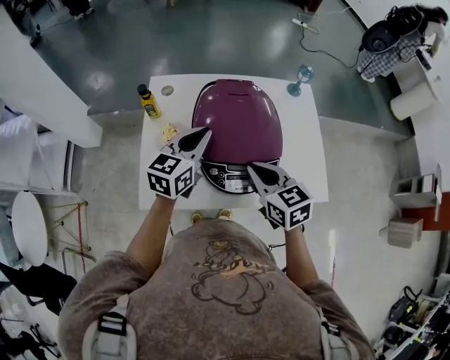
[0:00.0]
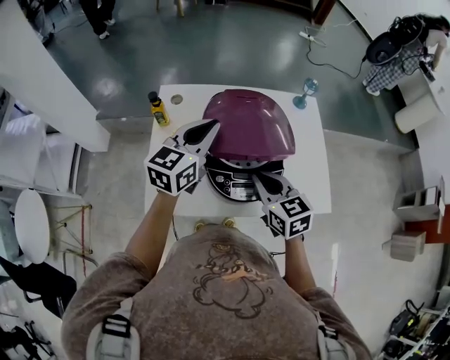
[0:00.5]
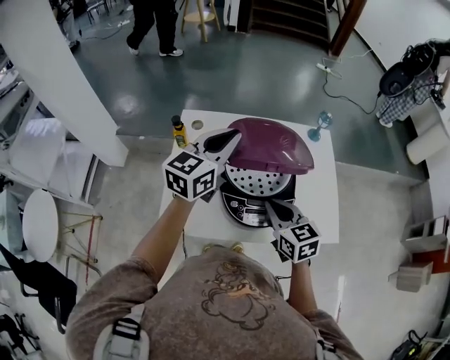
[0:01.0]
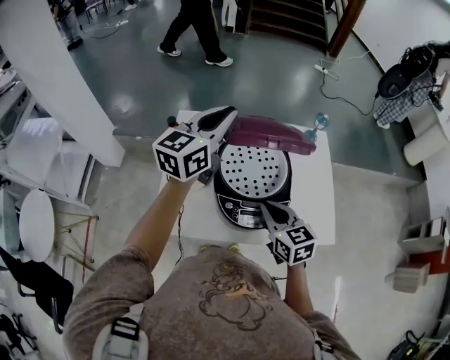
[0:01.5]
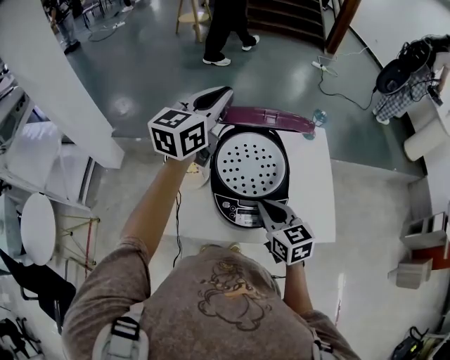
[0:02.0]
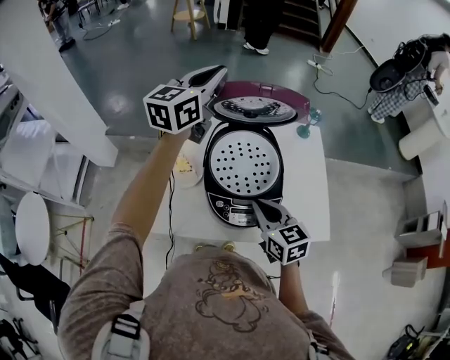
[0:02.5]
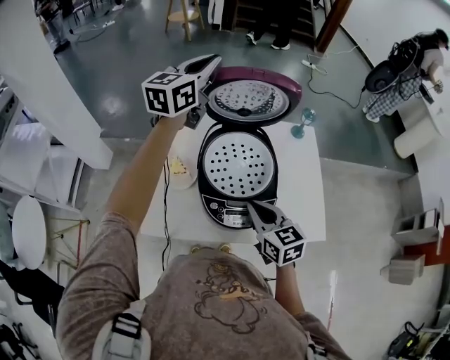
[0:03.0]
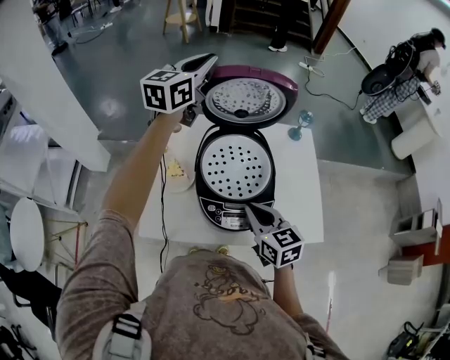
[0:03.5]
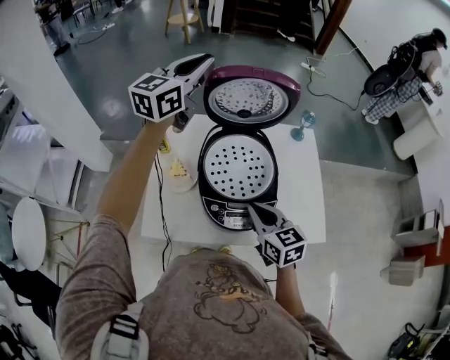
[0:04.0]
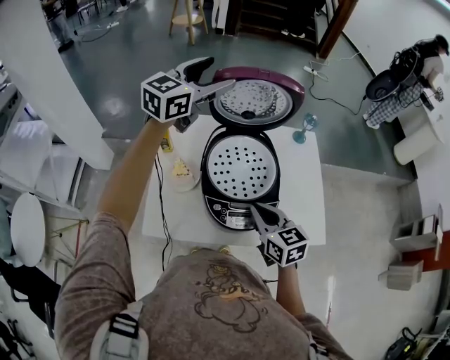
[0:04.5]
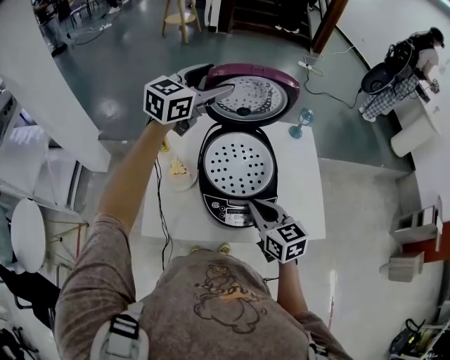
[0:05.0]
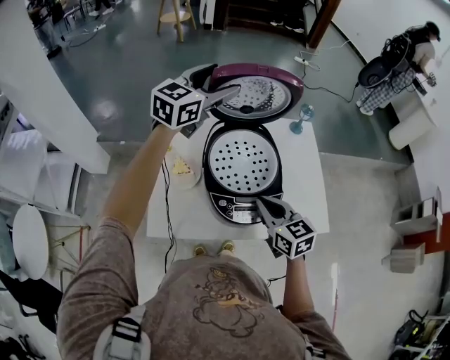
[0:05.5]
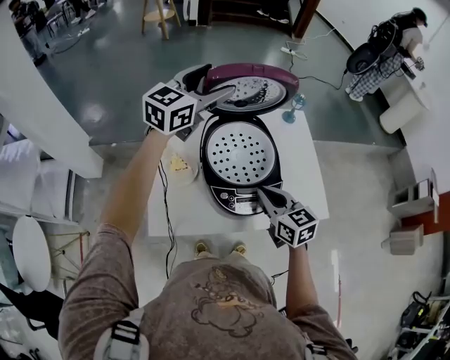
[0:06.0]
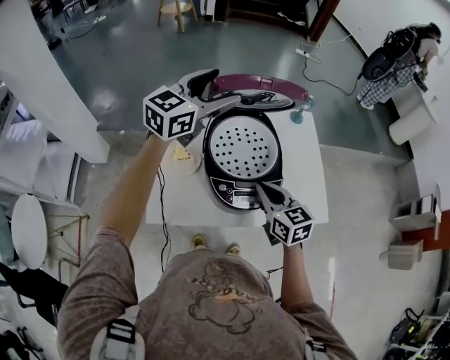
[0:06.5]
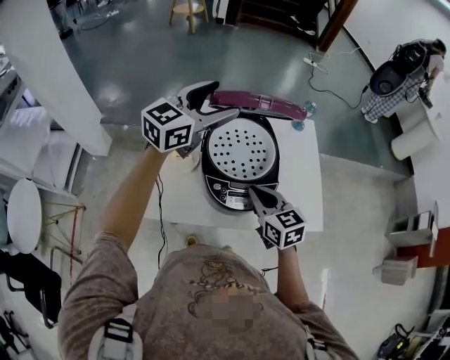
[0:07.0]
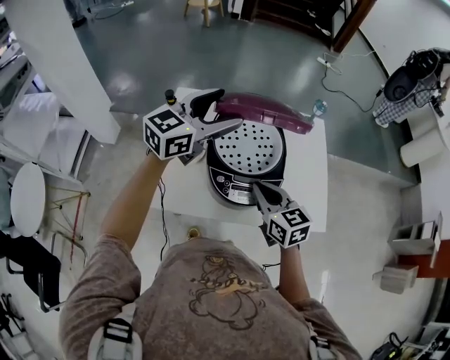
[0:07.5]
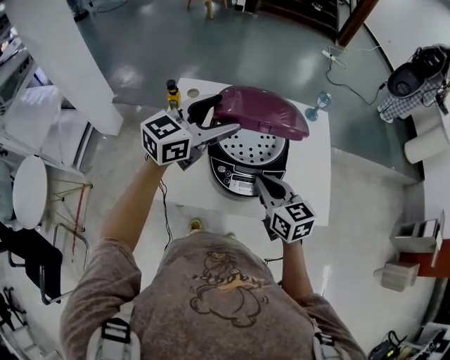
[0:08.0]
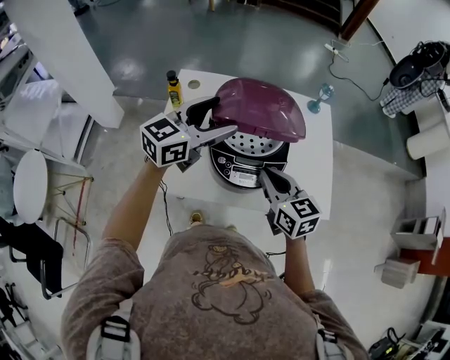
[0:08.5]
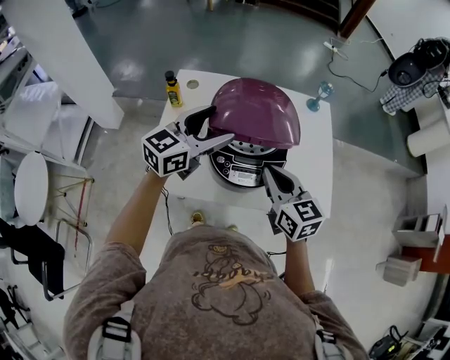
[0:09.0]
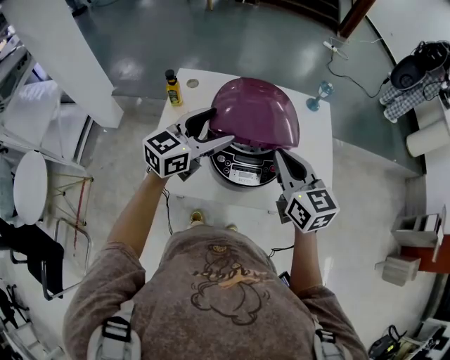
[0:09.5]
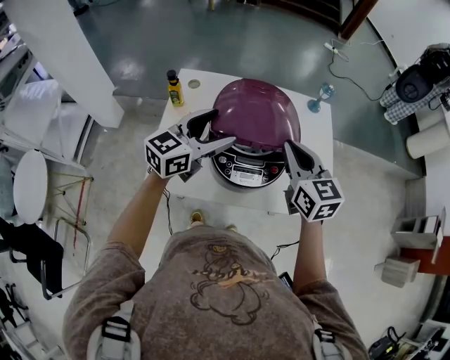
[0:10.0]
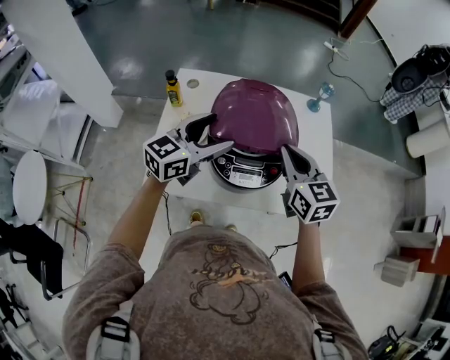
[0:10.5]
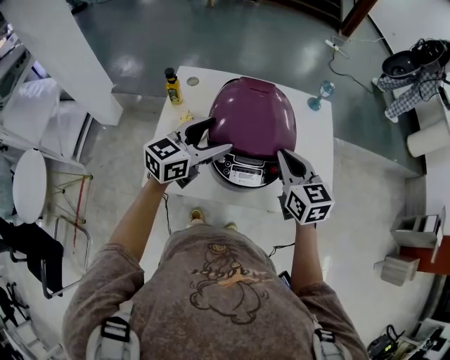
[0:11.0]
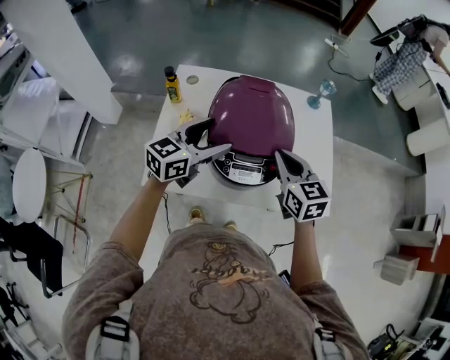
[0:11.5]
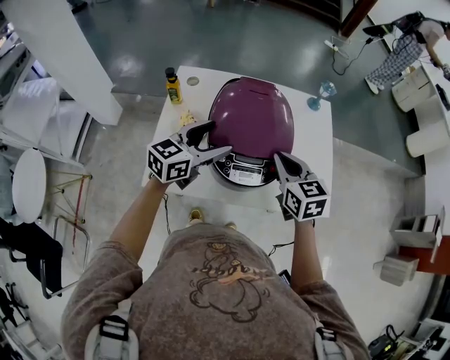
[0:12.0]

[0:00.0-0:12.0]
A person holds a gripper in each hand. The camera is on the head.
0:00.0 to 0:02.0: The left gripper travels upward and forward by roughly 20 cm.
0:02.0 to 0:04.0: The left gripper moves forward, approximately 5 cm.
0:04.0 to 0:06.0: The left gripper heads downward, covering about 5 cm, and opens its fingers.
0:06.0 to 0:08.0: The left gripper shifts about 15 cm backward and downward.
0:08.0 to 0:10.0: The left gripper heads downward, covering roughly 5 cm; the right gripper heads upward and forward, covering approximately 10 cm.
0:10.0 to 0:12.0: The left gripper shifts by some 5 cm; the right gripper moves downward, roughly 5 cm.

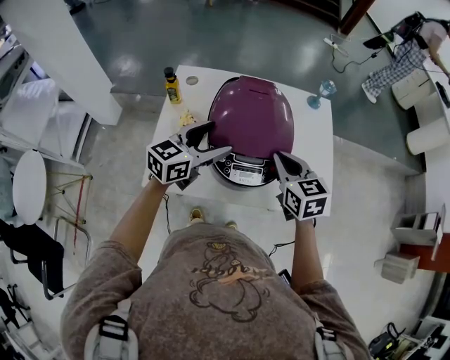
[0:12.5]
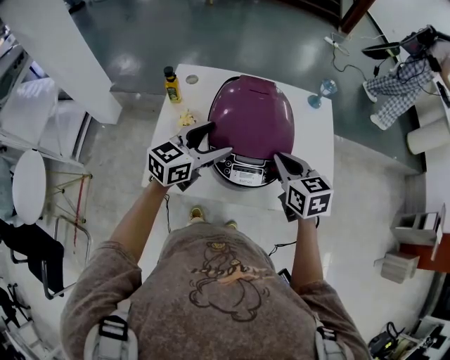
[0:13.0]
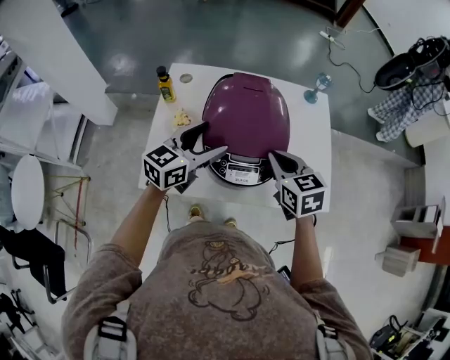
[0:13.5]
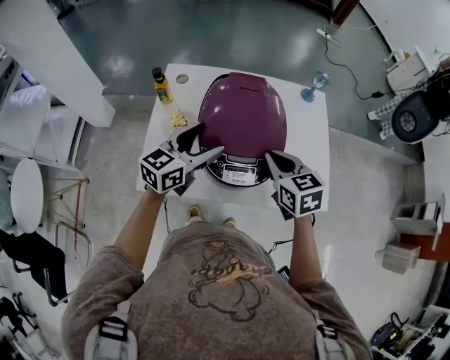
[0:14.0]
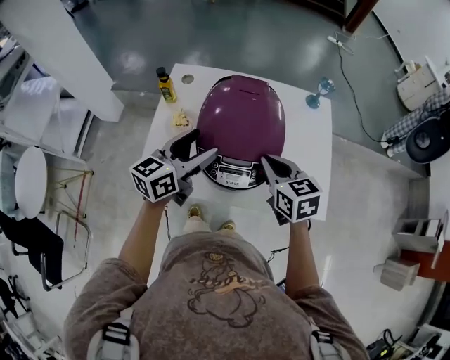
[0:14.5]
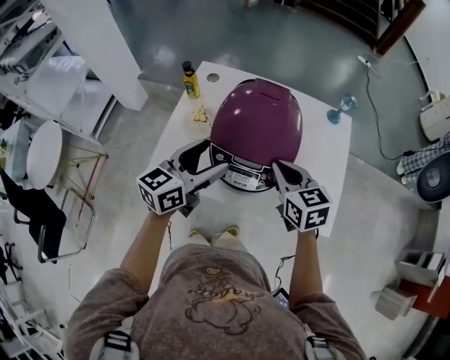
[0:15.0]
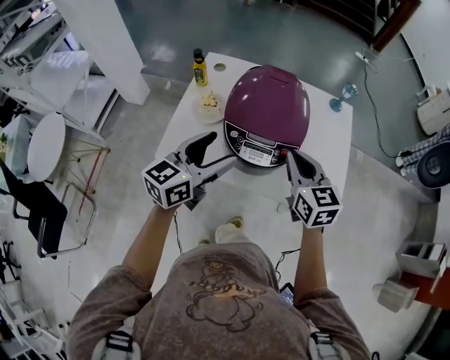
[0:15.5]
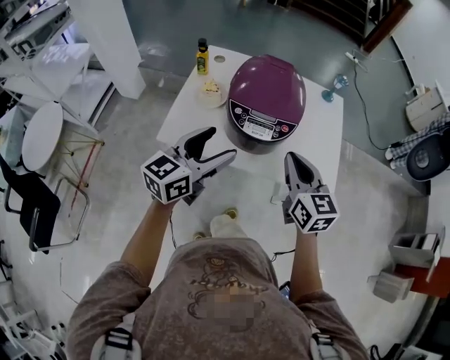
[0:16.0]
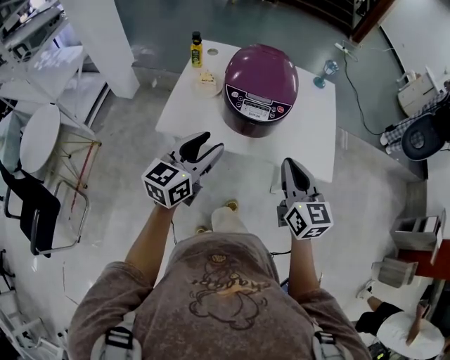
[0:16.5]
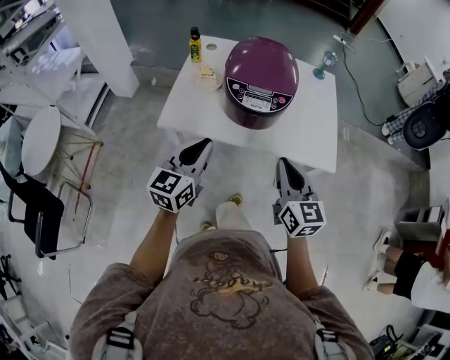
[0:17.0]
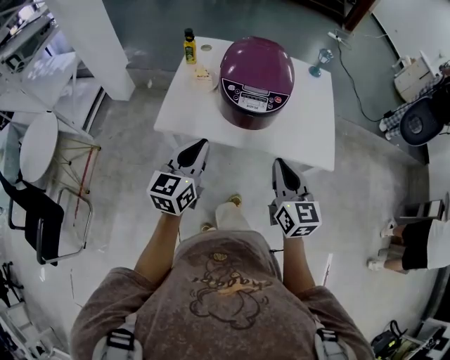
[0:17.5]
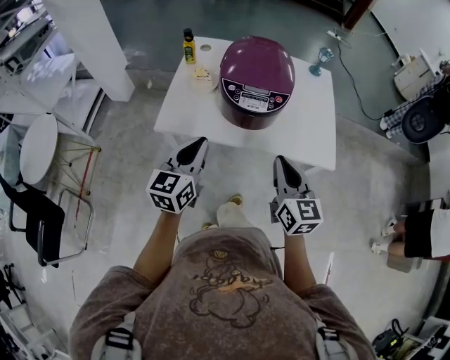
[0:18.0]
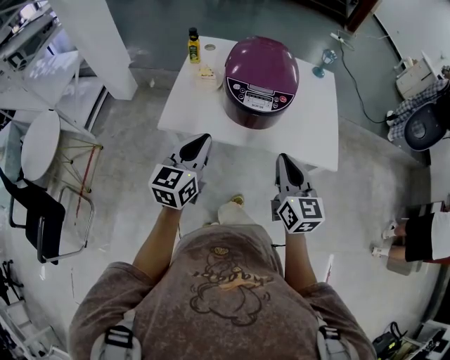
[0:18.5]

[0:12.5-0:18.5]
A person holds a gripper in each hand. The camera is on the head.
0:12.5 to 0:14.5: The grippers stay close to where they were, moving slightly.
0:14.5 to 0:16.5: Both grippers move backward, approximately 25 cm. The left gripper closes up, while the right gripper swivels roughly 20 degrees.
0:16.5 to 0:18.5: The left gripper closes its fingers.

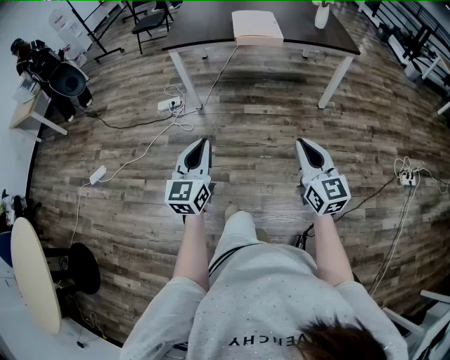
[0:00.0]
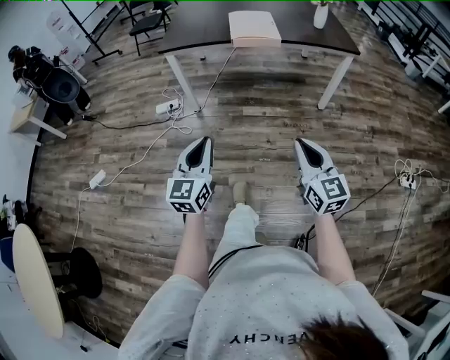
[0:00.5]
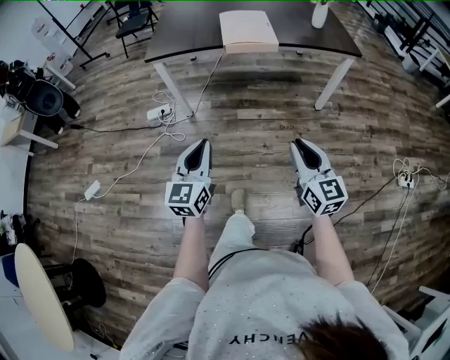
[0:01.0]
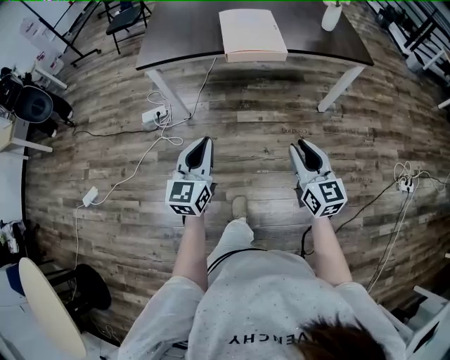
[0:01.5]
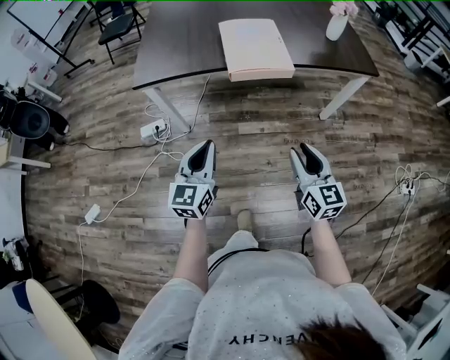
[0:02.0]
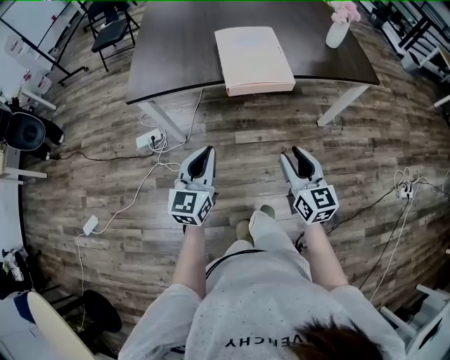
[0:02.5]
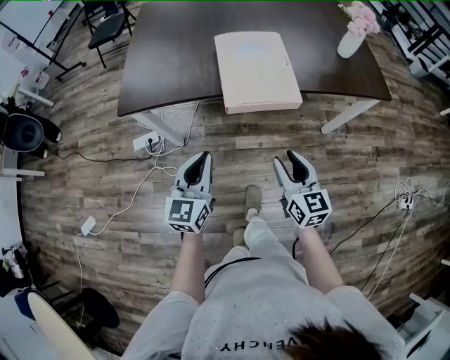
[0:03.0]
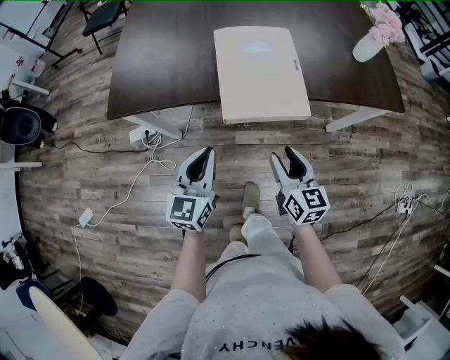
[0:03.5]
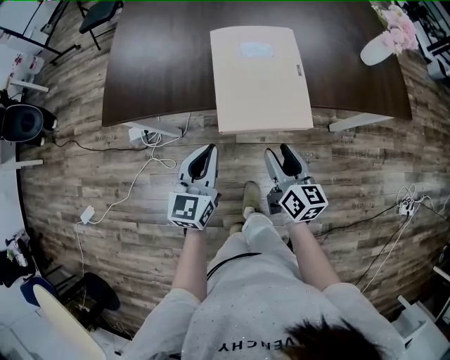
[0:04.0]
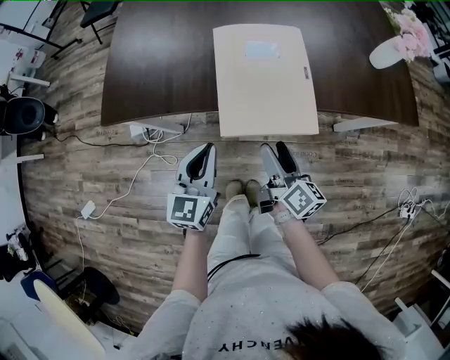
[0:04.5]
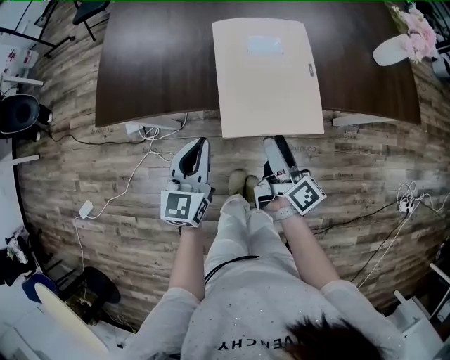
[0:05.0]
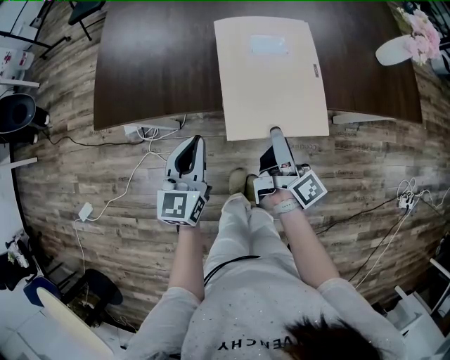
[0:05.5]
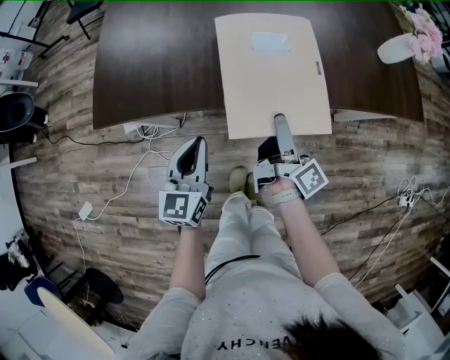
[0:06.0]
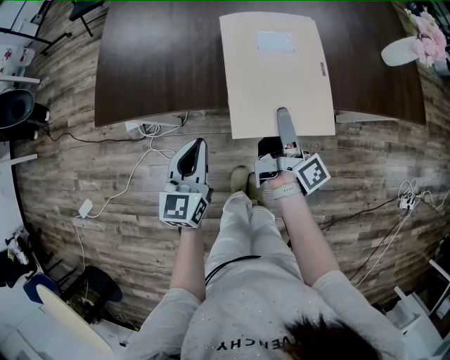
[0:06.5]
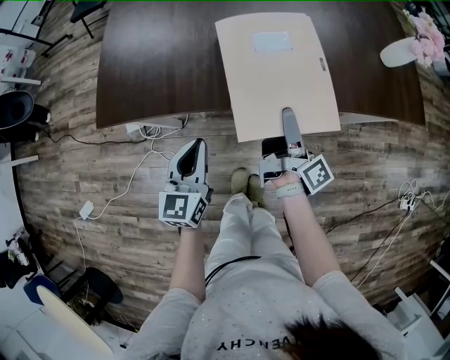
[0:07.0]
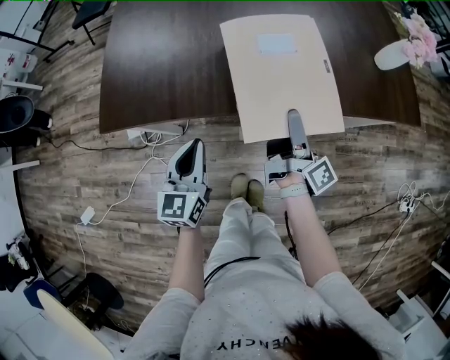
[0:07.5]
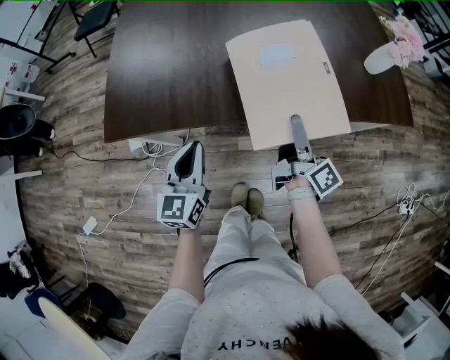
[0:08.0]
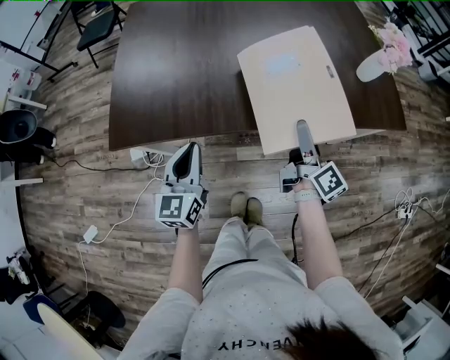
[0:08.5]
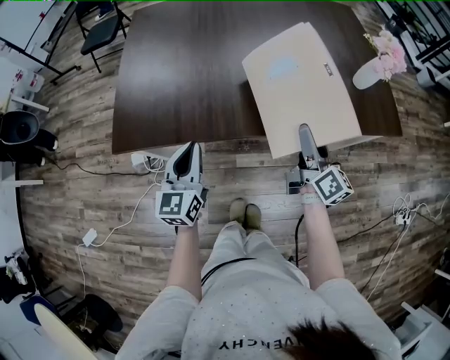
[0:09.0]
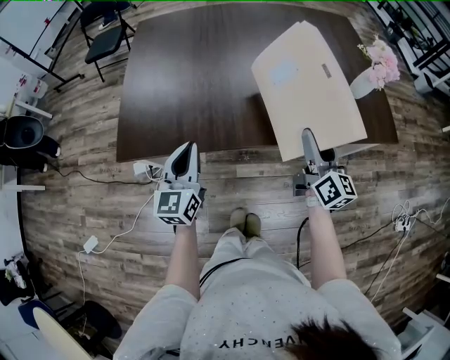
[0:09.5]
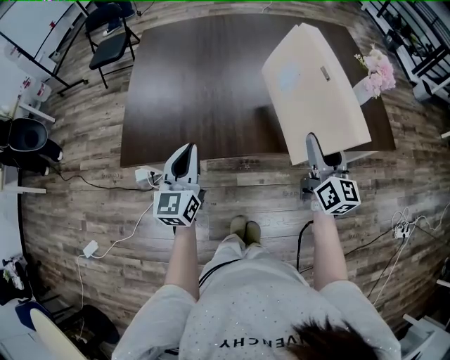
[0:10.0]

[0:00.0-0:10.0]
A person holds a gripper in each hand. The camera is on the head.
0:00.0 to 0:02.0: The two grippers go about 40 cm forward.
0:02.0 to 0:04.0: The two grippers go roughly 30 cm forward. The right gripper changes its angle by about 20 degrees.
0:04.0 to 0:06.0: The left gripper travels to the left by some 5 cm. The right gripper heads forward, covering approximately 10 cm, rotates around the line of its fingers by some 50 degrees, clockwise from behind, and opens its fingers.
0:06.0 to 0:08.0: The left gripper is displaced upward by about 5 cm; the right gripper shifts approximately 10 cm upward and to the right, and closes its fingers.
0:08.0 to 0:10.0: The grippers both shift upward by roughly 10 cm. The right gripper rotates around the line of its fingers by some 50 degrees, counterclockwise from behind.
